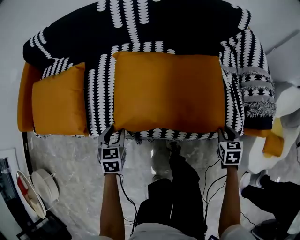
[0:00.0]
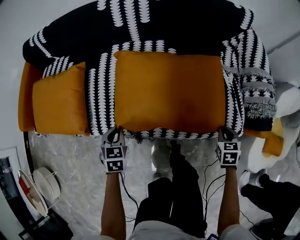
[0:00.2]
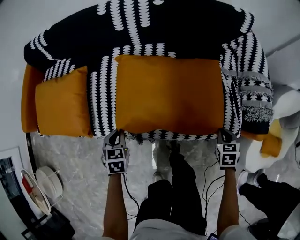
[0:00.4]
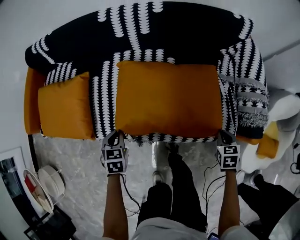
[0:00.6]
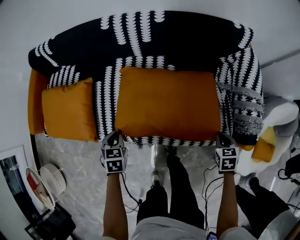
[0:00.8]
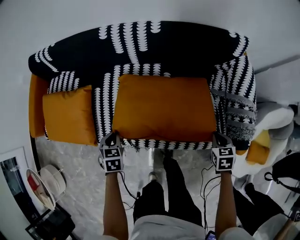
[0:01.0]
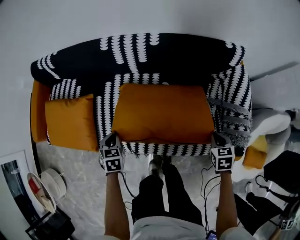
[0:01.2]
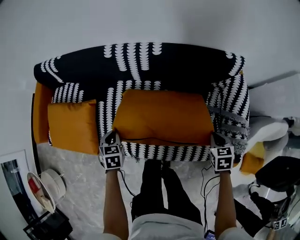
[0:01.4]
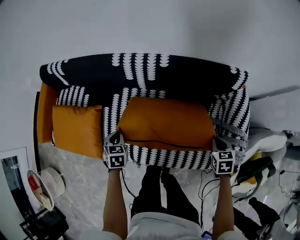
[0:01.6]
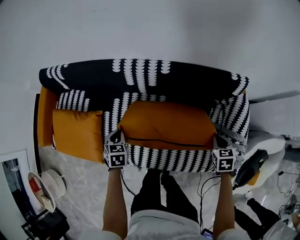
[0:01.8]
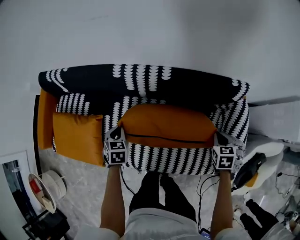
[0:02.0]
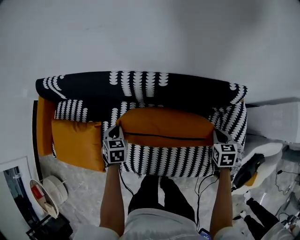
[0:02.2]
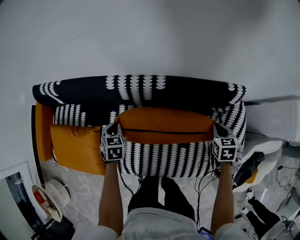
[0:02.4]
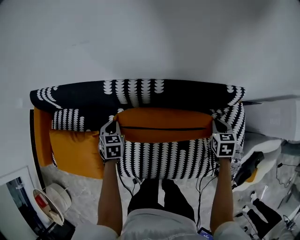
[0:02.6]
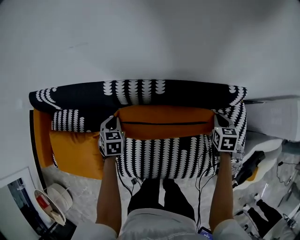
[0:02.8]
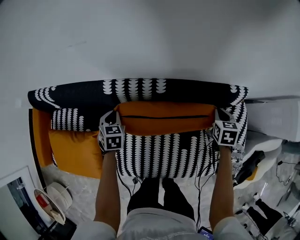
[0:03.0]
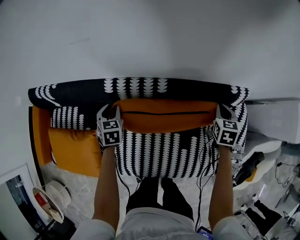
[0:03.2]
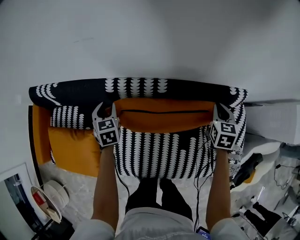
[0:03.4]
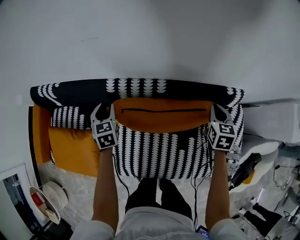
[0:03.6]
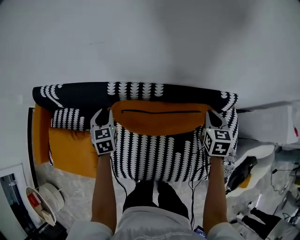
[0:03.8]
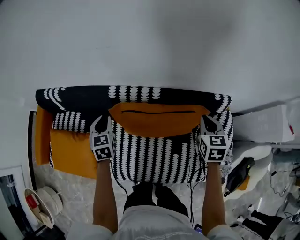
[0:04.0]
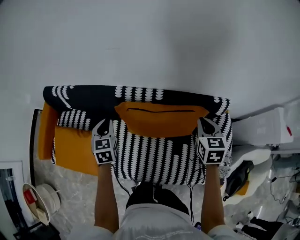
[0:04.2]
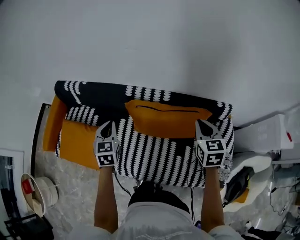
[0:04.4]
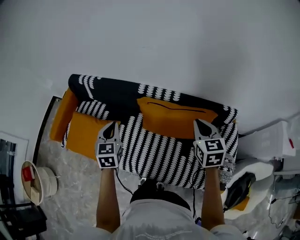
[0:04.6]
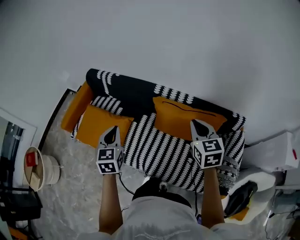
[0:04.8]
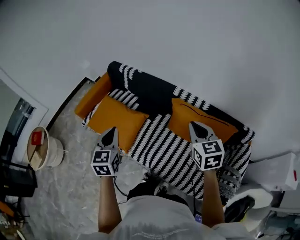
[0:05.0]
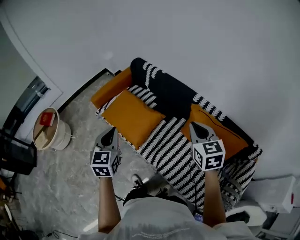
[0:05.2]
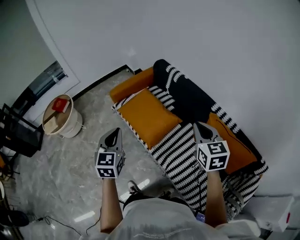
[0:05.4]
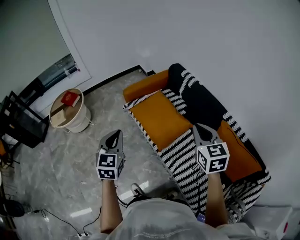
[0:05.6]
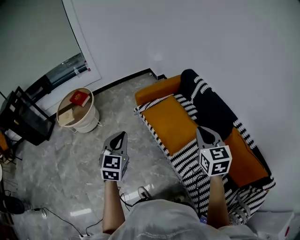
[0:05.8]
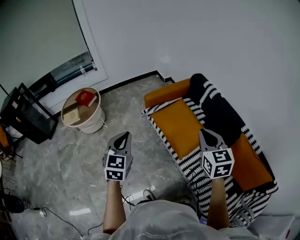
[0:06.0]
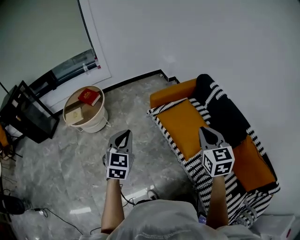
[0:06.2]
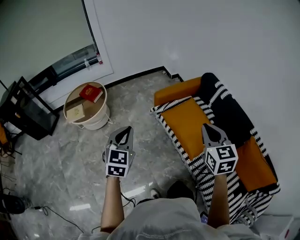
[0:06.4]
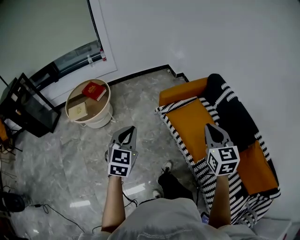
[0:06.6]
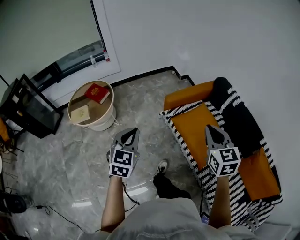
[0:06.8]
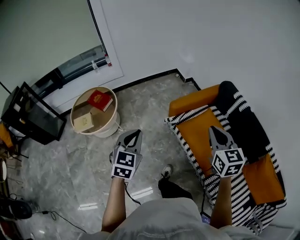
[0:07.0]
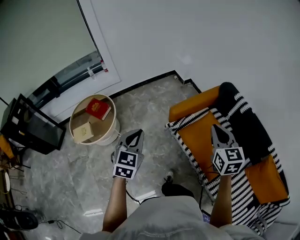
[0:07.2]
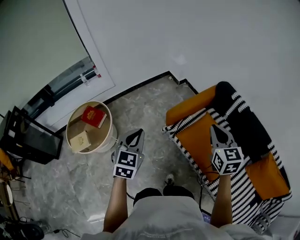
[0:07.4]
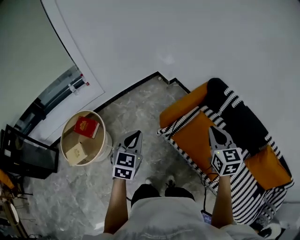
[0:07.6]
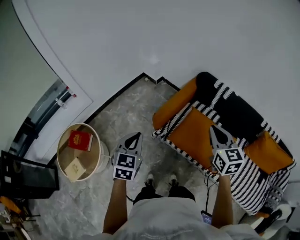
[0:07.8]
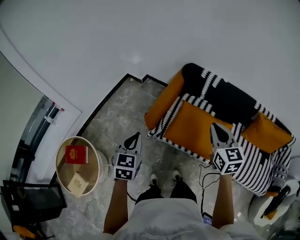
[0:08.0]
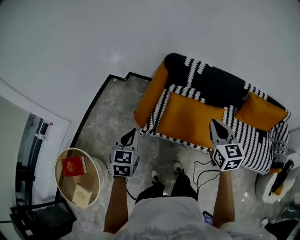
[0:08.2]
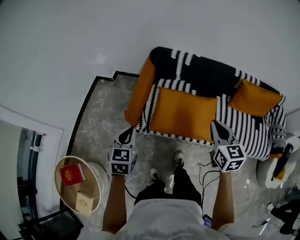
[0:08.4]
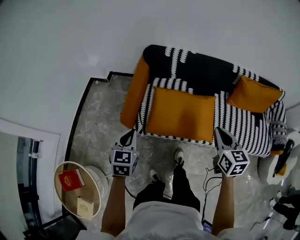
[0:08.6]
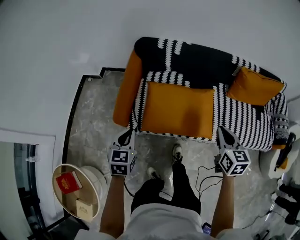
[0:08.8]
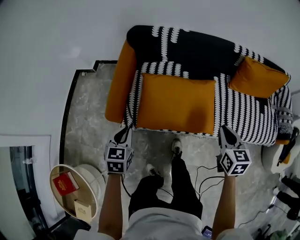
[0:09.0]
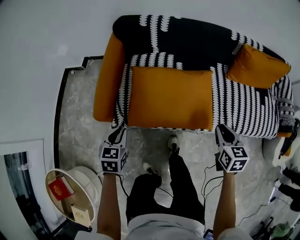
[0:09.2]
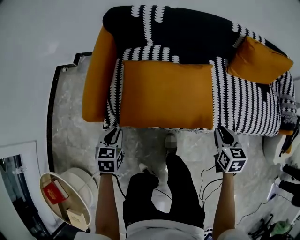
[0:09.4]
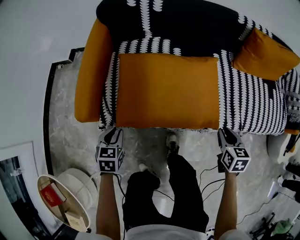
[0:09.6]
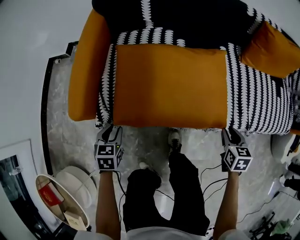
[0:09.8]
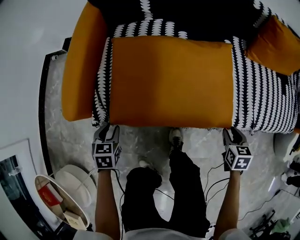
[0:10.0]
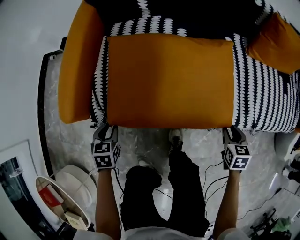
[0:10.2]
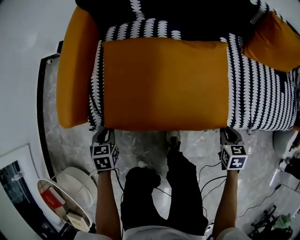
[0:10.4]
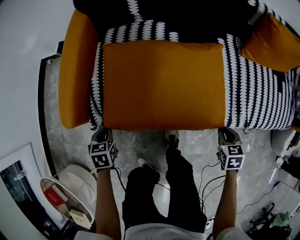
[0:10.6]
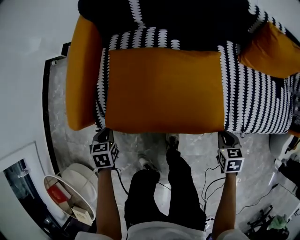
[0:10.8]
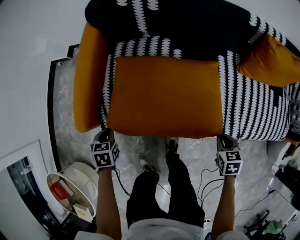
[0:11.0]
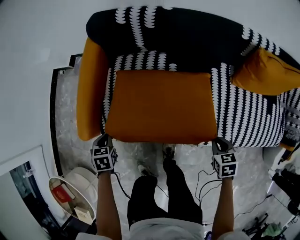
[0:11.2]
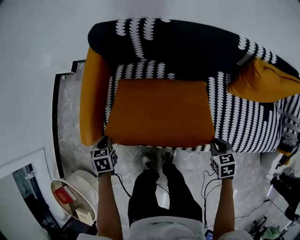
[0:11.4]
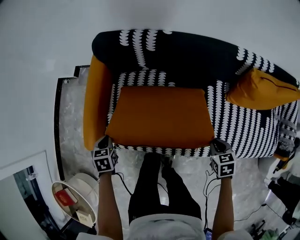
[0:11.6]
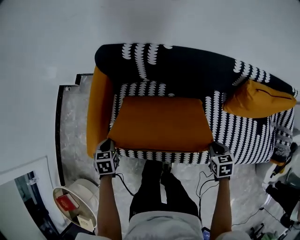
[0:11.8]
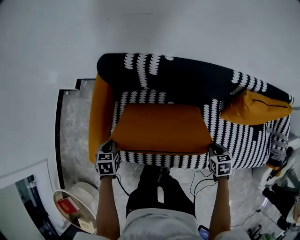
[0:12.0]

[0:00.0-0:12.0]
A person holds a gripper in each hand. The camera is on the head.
0.0 to 1.6 s: The two grippers go approximately 30 cm forward and upward. The left gripper closes; the right gripper closes.
1.6 to 3.0 s: The two grippers go some 25 cm forward.
3.0 to 4.4 s: The left gripper moves upward and backward, approximately 30 cm, changes its angle by approximately 30 degrees, and opens and closes again. Meanwhile the right gripper travels upward, to the left and backward by approximately 30 cm, and rotates about 30 degrees.
4.4 to 6.0 s: Both grippers are carried about 70 cm. The right gripper changes its angle by roughly 60 degrees. The left gripper changes its angle by roughly 40 degrees.
6.0 to 7.6 s: Both grippers move forward and to the left, about 35 cm.
7.6 to 9.0 s: The left gripper heads downward, covering approximately 25 cm, and swivels some 40 degrees, while the right gripper shifts by roughly 35 cm, and rotates roughly 50 degrees.
9.0 to 10.4 s: Both grippers travel together downward, about 35 cm. The right gripper swivels roughly 30 degrees. The left gripper rotates some 20 degrees.
10.4 to 12.0 s: The right gripper heads forward and upward, covering about 30 cm. Meanwhile the left gripper travels upward and forward by roughly 30 cm.

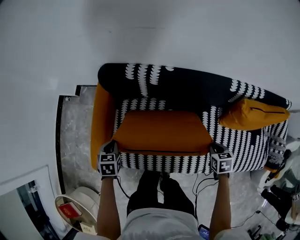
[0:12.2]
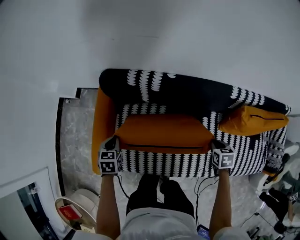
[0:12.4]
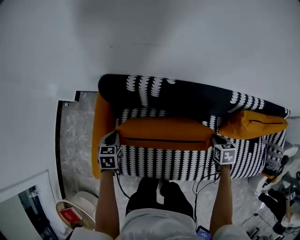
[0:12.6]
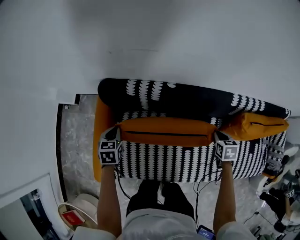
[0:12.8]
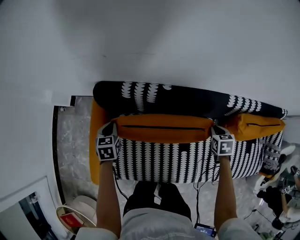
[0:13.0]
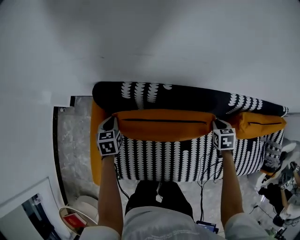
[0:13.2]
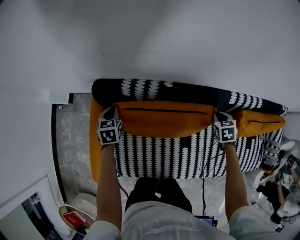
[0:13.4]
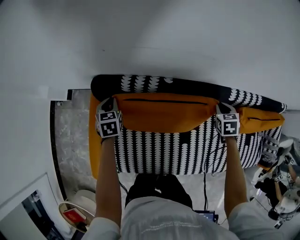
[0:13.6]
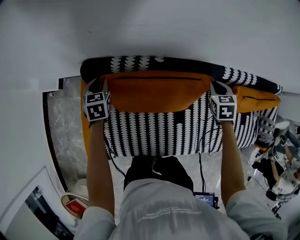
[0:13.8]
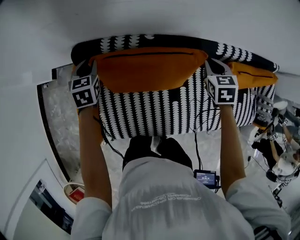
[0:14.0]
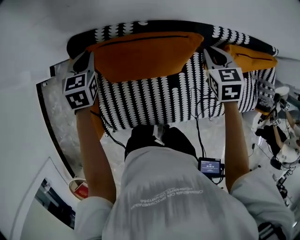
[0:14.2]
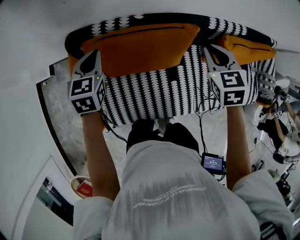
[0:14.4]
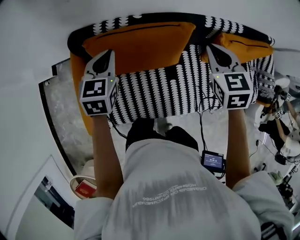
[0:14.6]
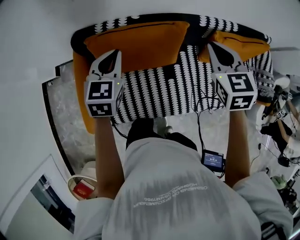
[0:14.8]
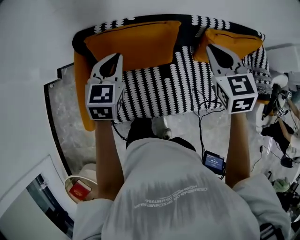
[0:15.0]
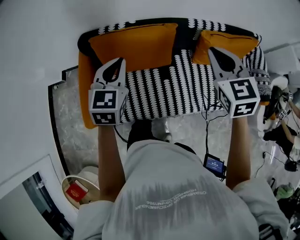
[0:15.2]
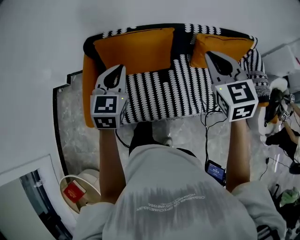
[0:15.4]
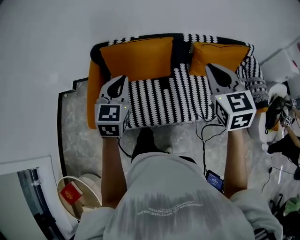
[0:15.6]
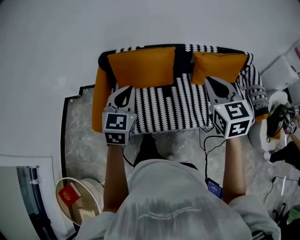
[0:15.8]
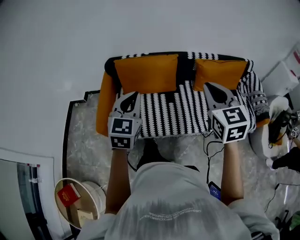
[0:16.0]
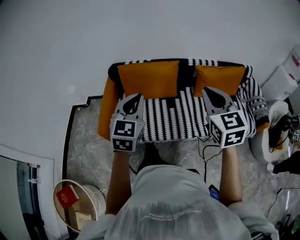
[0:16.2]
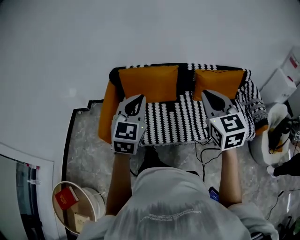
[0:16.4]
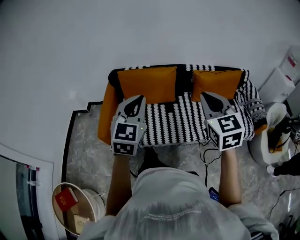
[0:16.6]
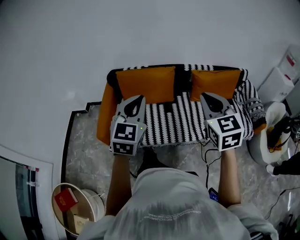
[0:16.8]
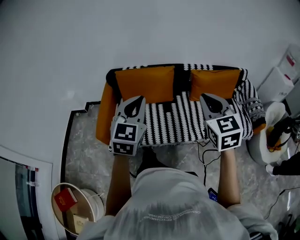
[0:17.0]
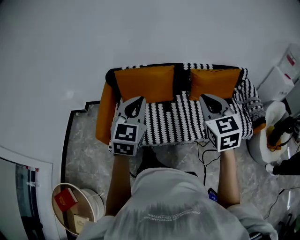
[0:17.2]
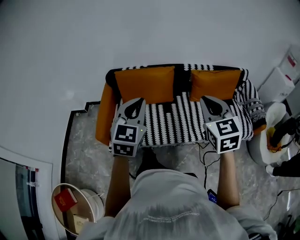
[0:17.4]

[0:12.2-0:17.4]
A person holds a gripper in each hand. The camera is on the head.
12.2 to 14.0 s: The left gripper goes some 30 cm forward, and opens up, while the right gripper heads forward and upward, covering approximately 25 cm, and rotates roughly 20 degrees.
14.0 to 15.6 s: Both grippers are carried backward and to the right, about 40 cm. The grippers both shift upward by about 30 cm. The right gripper points its fingers approximately 30 degrees further upward, while the left gripper rotates roughly 30 degrees, and closes.
15.6 to 17.4 s: The right gripper moves backward, roughly 15 cm, while the left gripper shifts about 15 cm backward, upward and to the right.

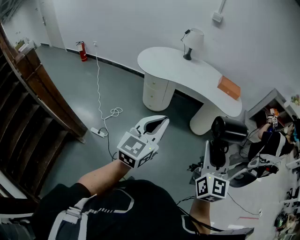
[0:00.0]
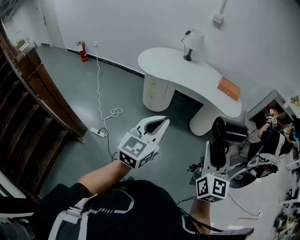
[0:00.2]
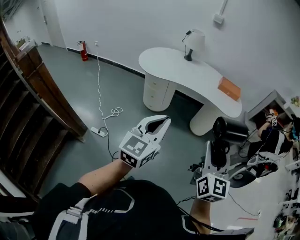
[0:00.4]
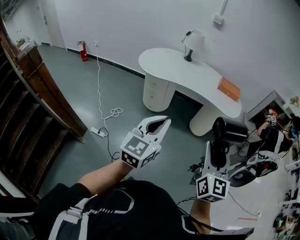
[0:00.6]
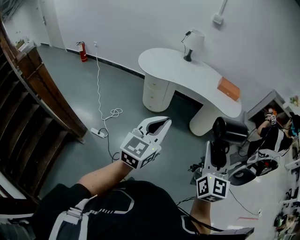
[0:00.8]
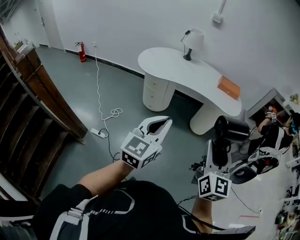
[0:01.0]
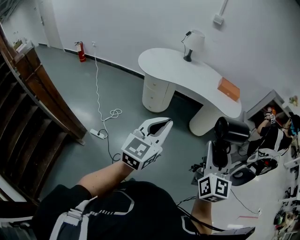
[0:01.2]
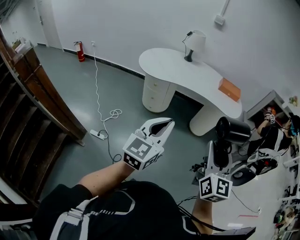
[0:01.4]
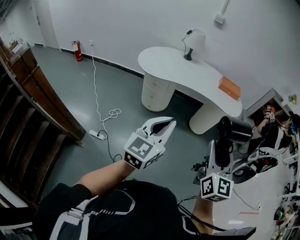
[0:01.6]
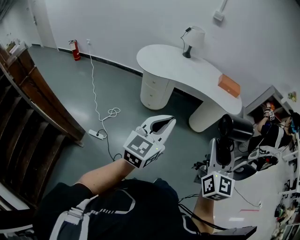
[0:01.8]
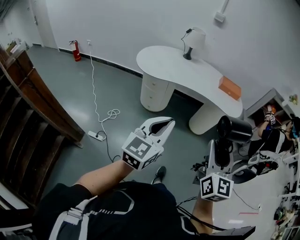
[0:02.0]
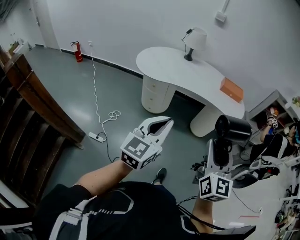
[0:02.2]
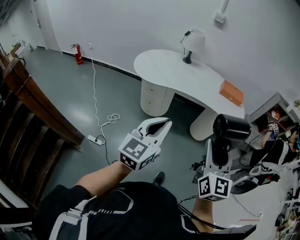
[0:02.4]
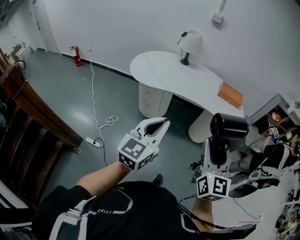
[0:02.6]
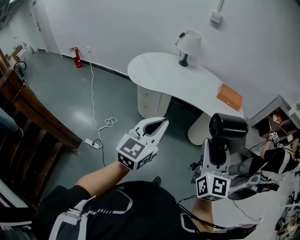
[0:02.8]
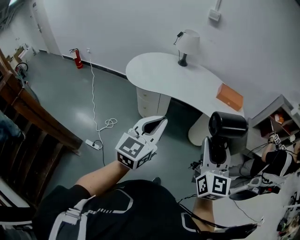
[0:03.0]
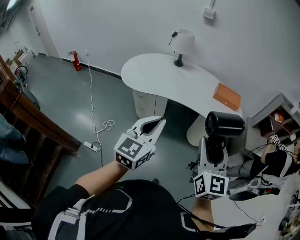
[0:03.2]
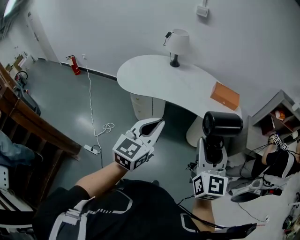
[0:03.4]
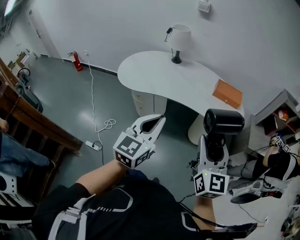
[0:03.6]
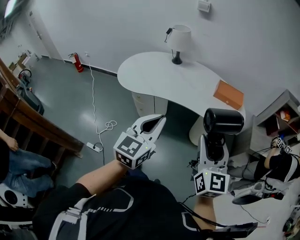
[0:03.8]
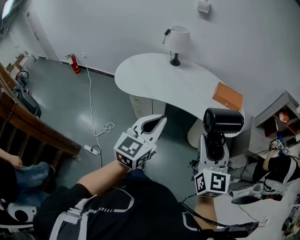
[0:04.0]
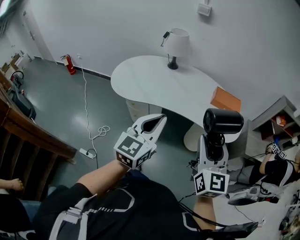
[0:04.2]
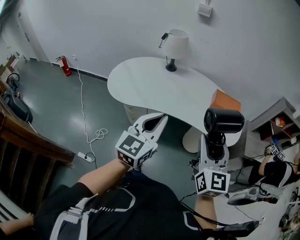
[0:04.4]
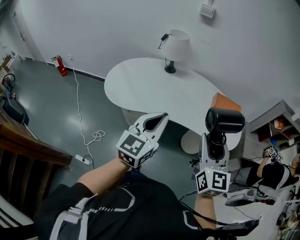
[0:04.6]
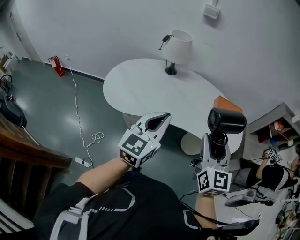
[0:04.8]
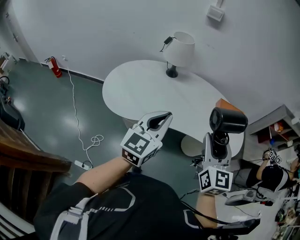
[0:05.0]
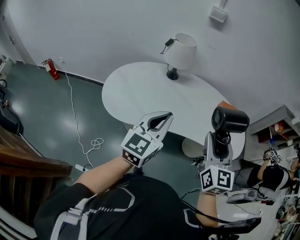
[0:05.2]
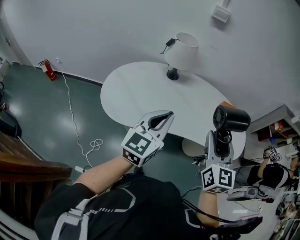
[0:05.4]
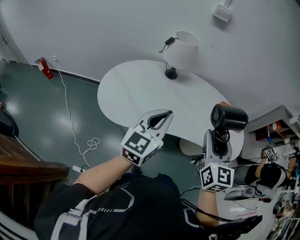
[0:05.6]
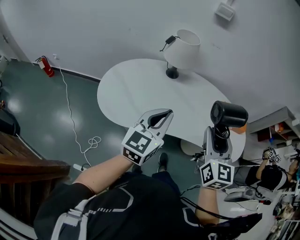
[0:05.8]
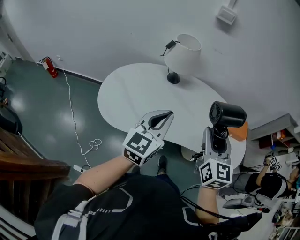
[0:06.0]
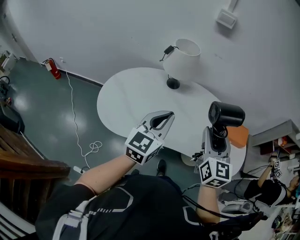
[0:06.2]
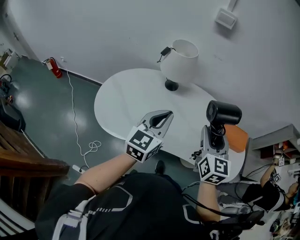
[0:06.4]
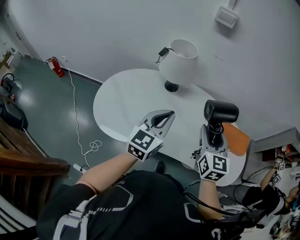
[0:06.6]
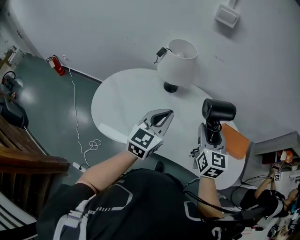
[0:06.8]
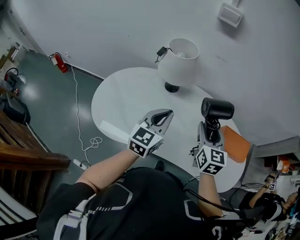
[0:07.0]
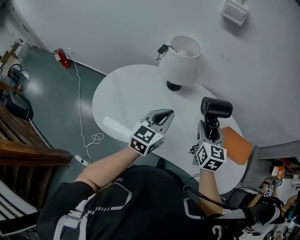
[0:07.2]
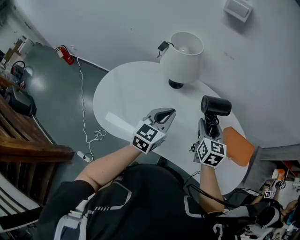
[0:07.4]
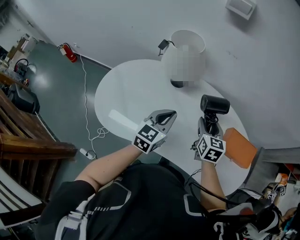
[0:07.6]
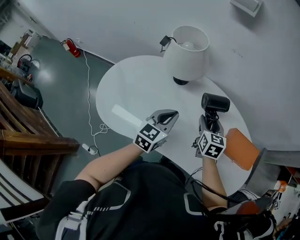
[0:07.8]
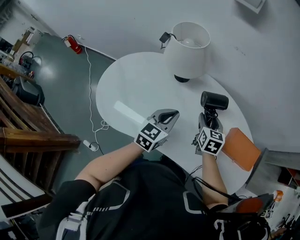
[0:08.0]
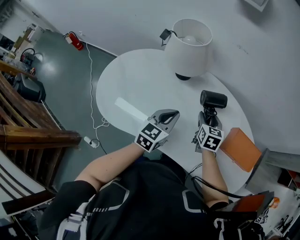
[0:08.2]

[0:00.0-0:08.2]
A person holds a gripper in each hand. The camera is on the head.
0.0 to 1.6 s: The right gripper goes approximately 5 cm to the left.
1.6 to 3.2 s: Both grippers move forward, roughly 20 cm.
3.2 to 5.0 s: Both grippers move forward, approximately 30 cm.
5.0 to 6.6 s: The grippers both shift forward by roughly 25 cm.
6.6 to 8.2 s: The right gripper is displaced downward and forward by about 30 cm, and rotates some 30 degrees, while the left gripper shifts some 20 cm downward and forward, and changes its angle by about 20 degrees.
